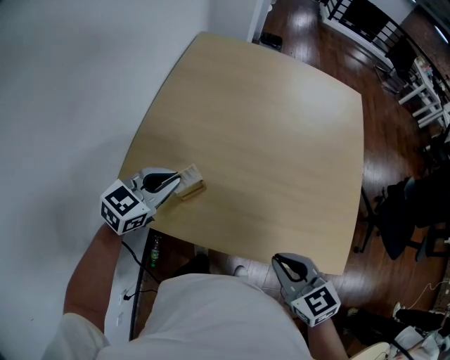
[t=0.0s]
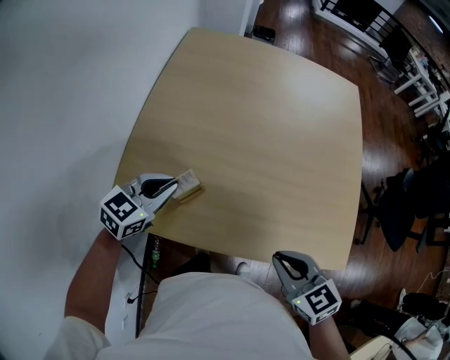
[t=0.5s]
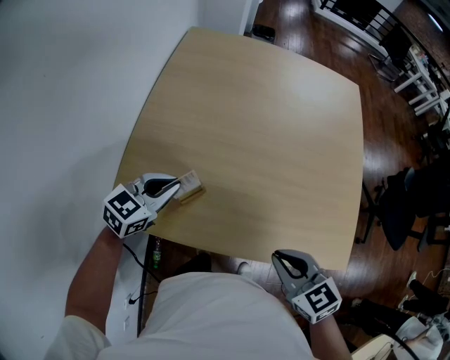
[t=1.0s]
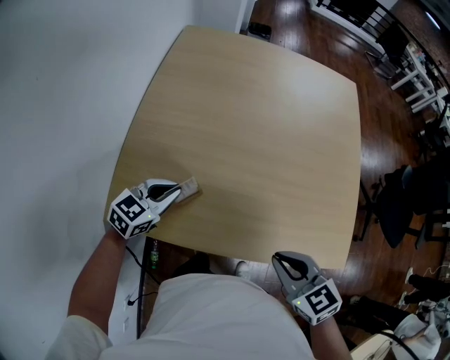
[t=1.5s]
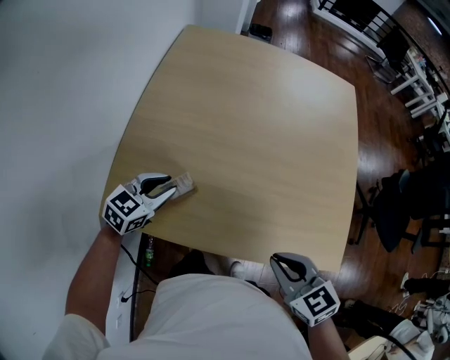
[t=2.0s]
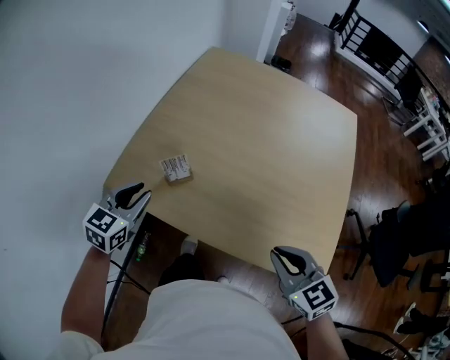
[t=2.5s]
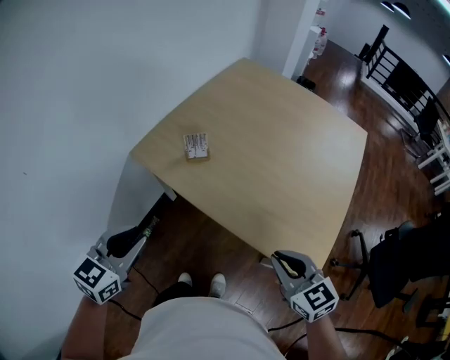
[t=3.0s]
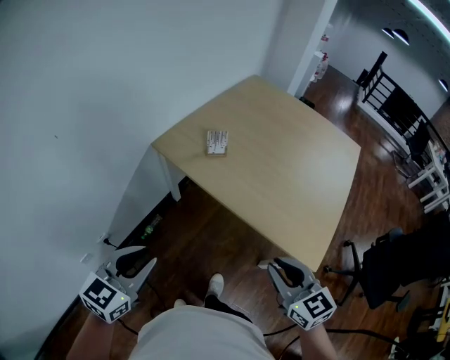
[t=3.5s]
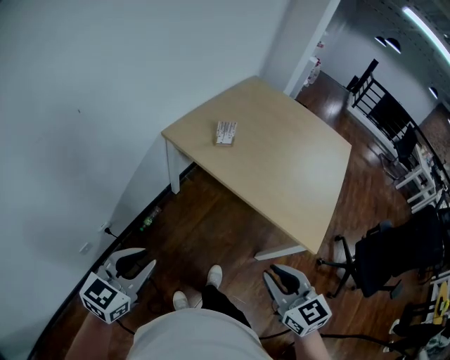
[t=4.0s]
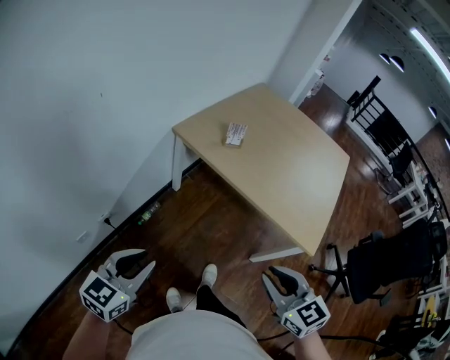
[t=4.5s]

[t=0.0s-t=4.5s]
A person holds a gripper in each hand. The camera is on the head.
t=0.0s to t=2.0s: The left gripper shifts approximately 10 cm downward, and opens.
t=2.0s to t=4.5s: Both grippers are carried approximately 60 cm. The left gripper changes its angle by approximately 40 degrees; the right gripper swivels approximately 30 degrees.

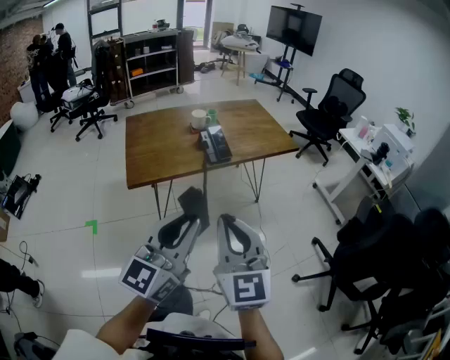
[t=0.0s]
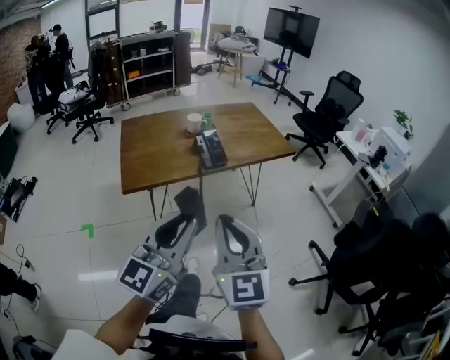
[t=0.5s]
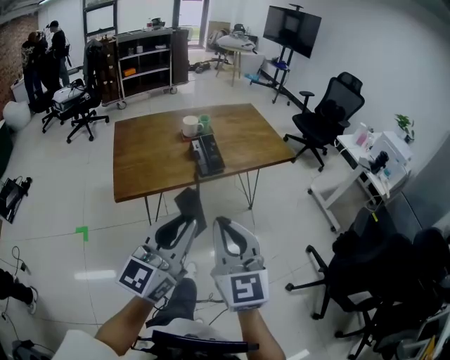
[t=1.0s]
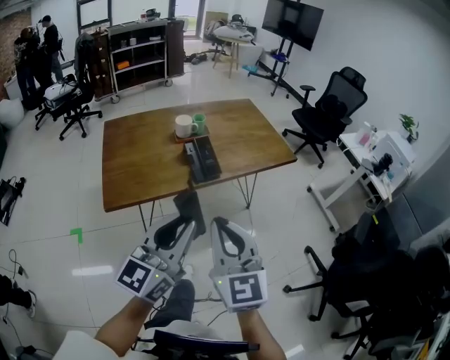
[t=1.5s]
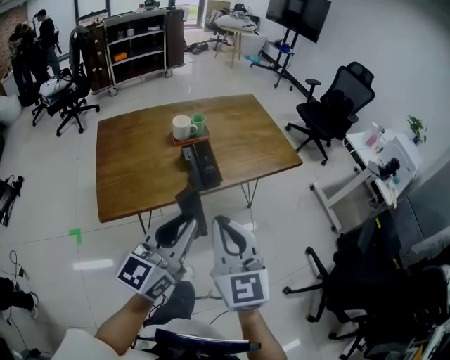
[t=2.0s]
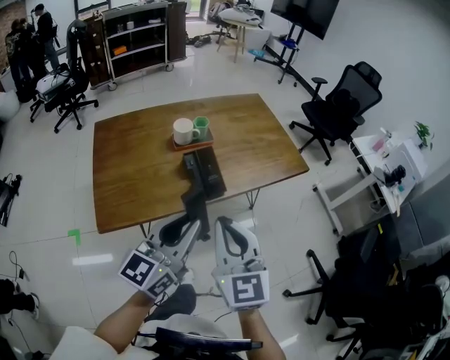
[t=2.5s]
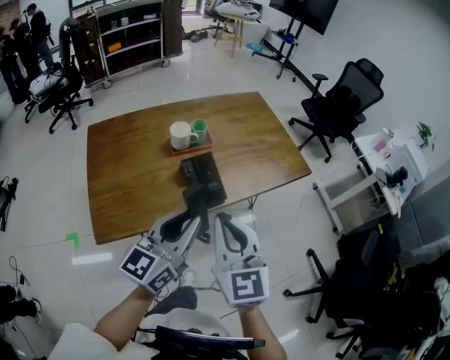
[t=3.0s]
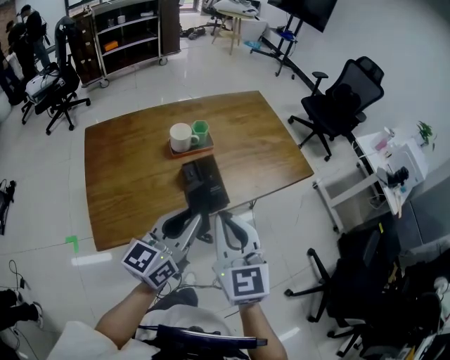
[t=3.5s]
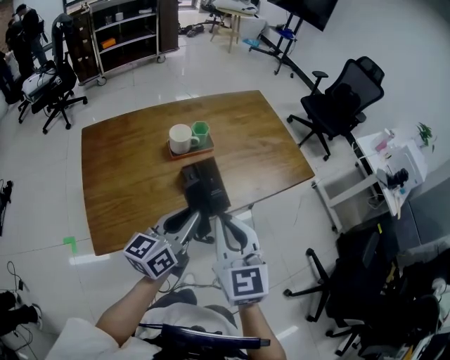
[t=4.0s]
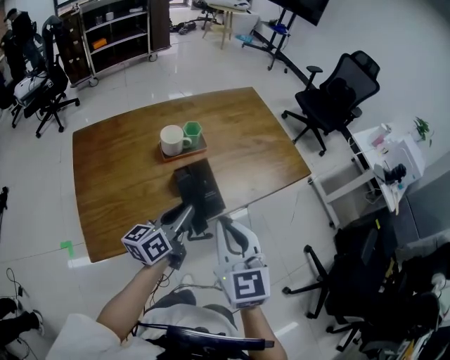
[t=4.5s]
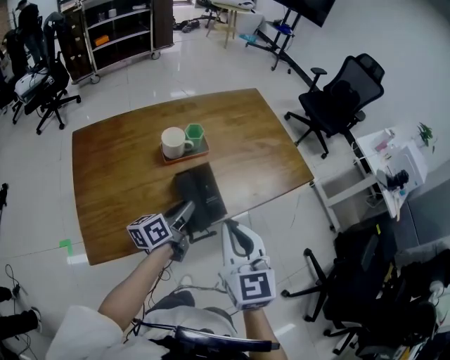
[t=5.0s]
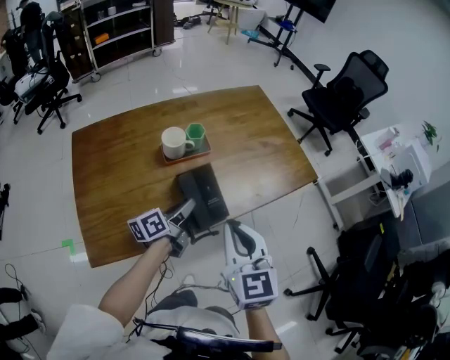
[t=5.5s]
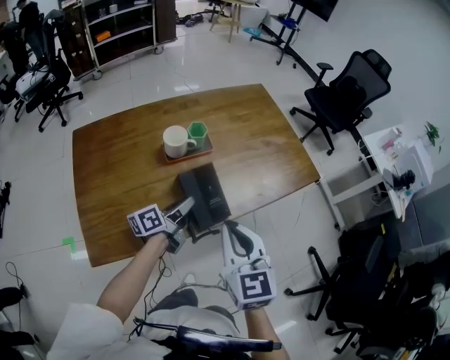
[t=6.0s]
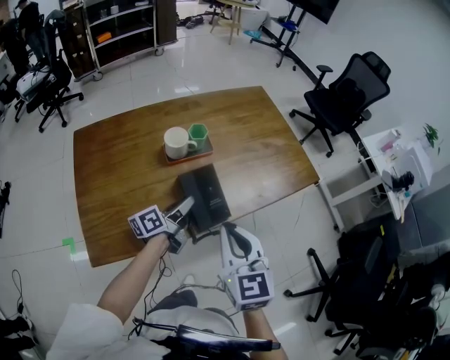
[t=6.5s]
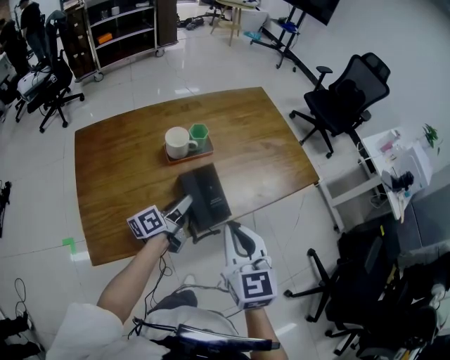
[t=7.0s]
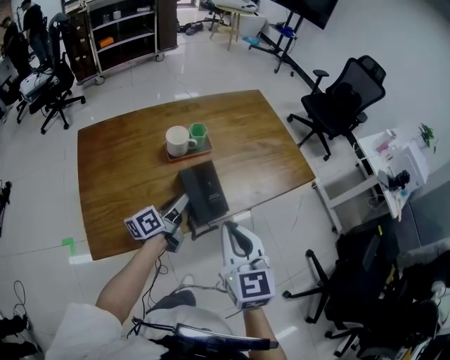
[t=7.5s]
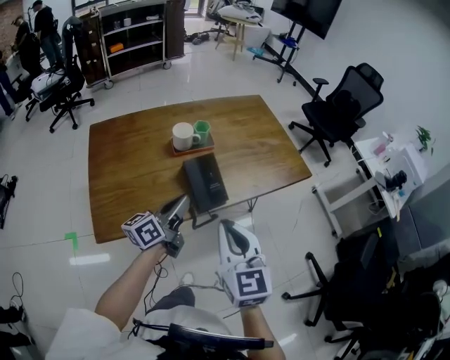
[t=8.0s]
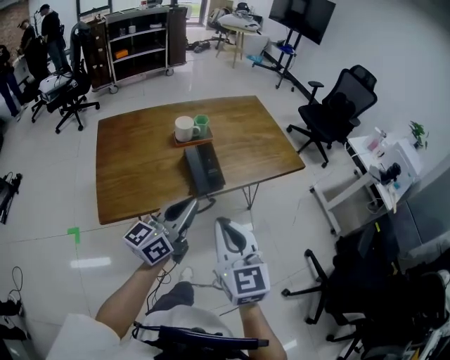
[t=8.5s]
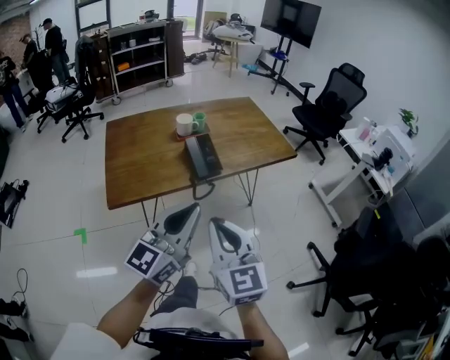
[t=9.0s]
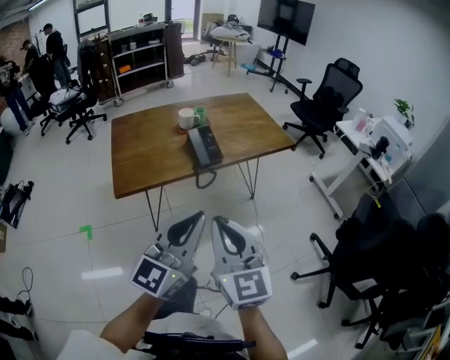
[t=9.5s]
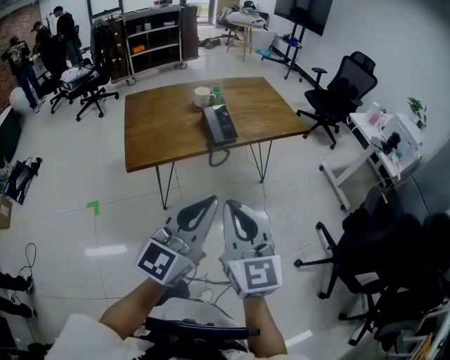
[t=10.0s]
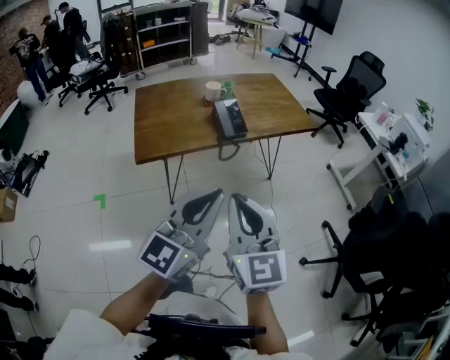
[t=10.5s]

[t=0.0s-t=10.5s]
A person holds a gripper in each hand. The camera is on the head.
t=0.0s to t=2.0s: Both grippers travel together forward, approximately 25 cm.
t=2.0s to t=4.0s: The right gripper is displaced forward by about 15 cm, while the left gripper travels forward and downward by approximately 20 cm.
t=4.0s to t=6.5s: The right gripper shifts by some 5 cm; the left gripper is displaced downward and forward by approximately 20 cm, and changes its angle by about 30 degrees.
t=6.5s to t=8.5s: The right gripper is displaced backward by about 20 cm. The left gripper is displaced backward and upward by roughly 30 cm, and changes its angle by some 40 degrees.
t=8.5s to t=10.5s: Both grippers move backward, roughly 25 cm. The left gripper turns by approximately 30 degrees.

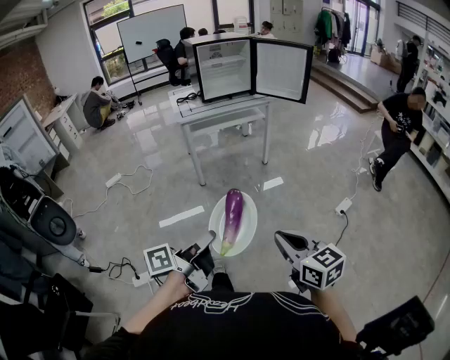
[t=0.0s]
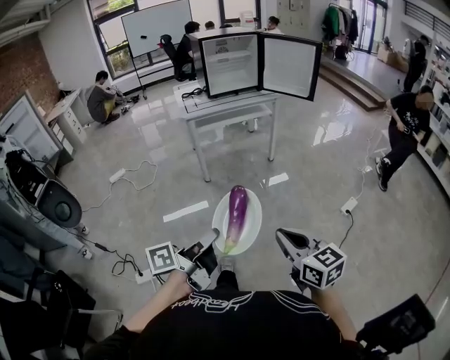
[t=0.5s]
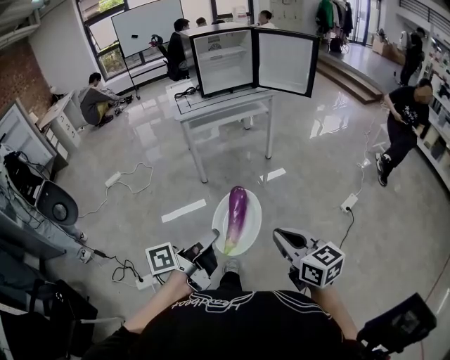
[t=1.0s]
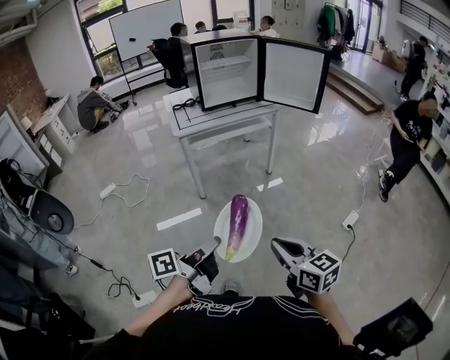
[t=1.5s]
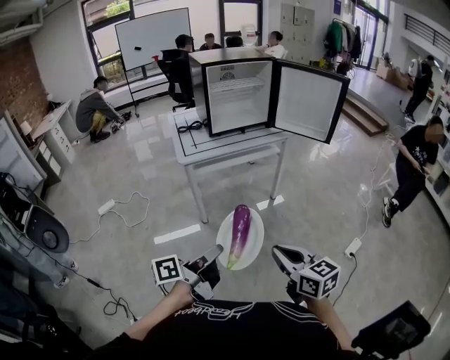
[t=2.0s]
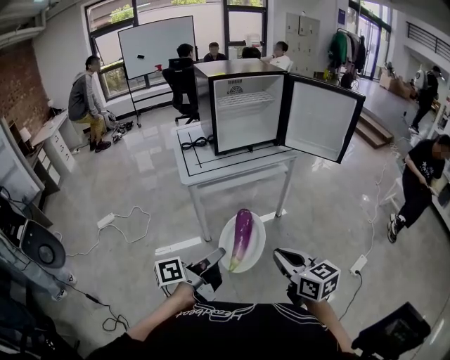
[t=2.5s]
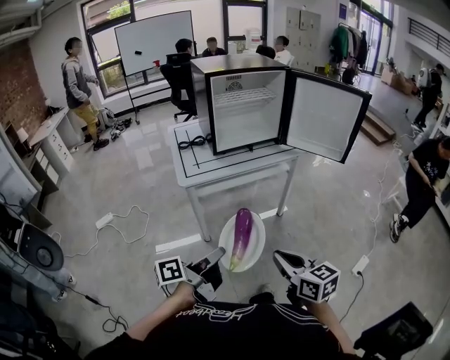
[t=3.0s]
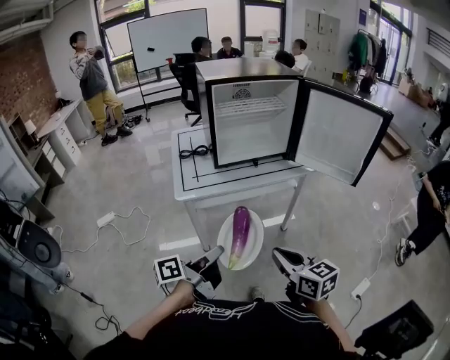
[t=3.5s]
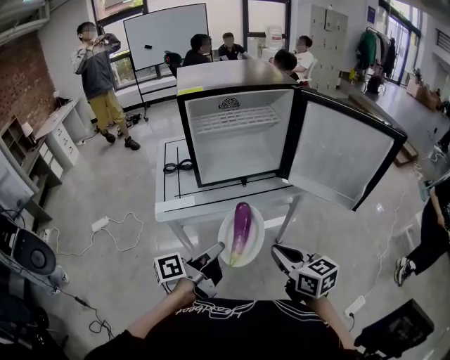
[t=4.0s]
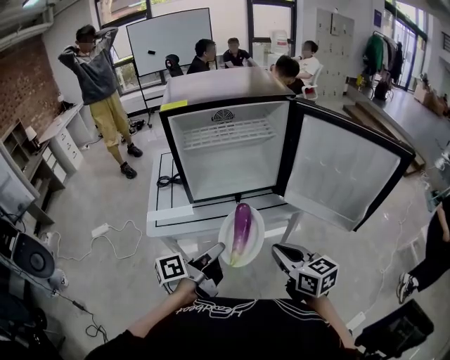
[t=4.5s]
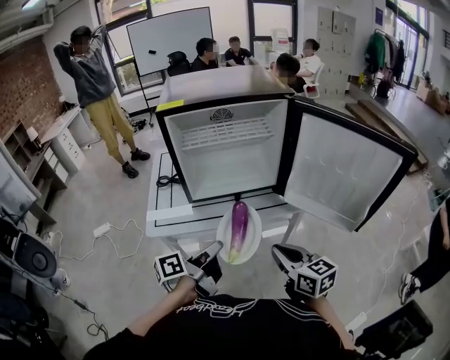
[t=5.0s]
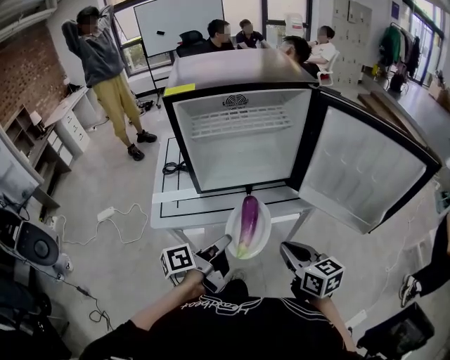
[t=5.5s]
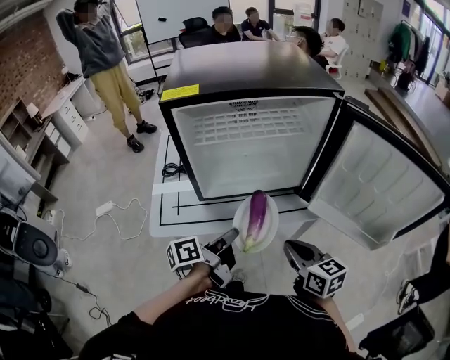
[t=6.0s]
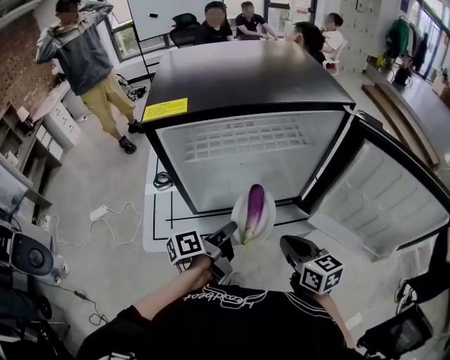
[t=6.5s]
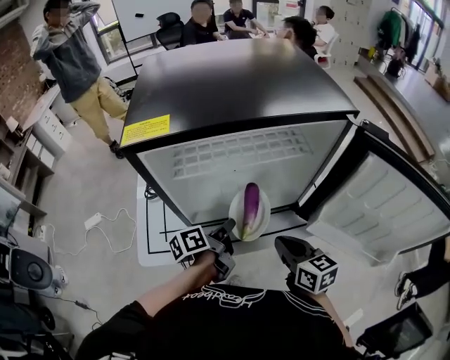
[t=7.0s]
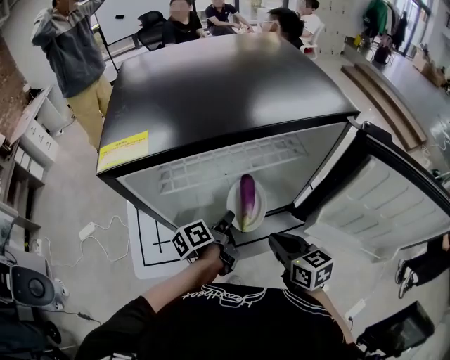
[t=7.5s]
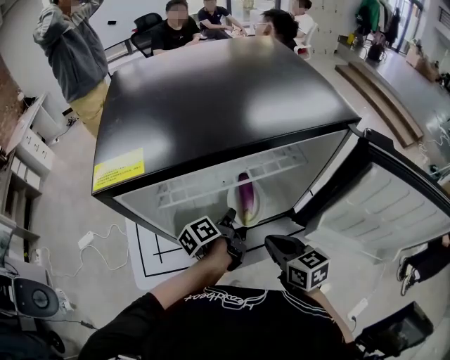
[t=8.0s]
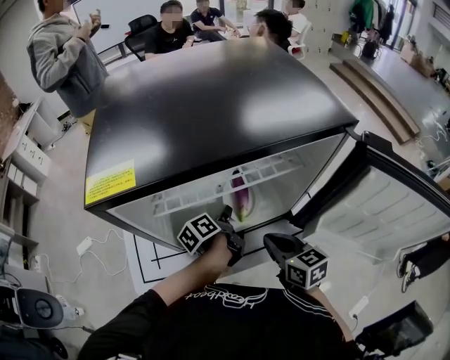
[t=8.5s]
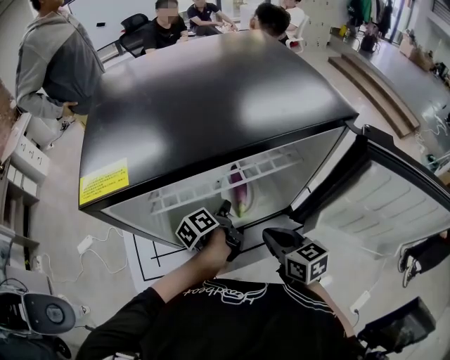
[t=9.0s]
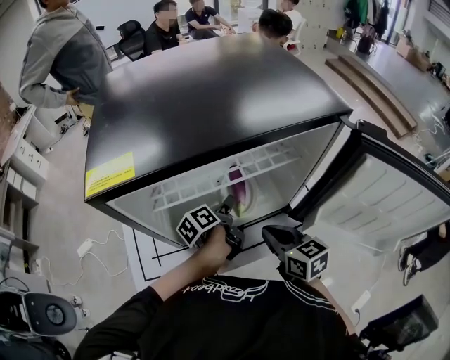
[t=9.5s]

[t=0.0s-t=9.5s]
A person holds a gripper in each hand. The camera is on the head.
t=0.0s to t=2.0s: Both grippers move forward, about 30 cm.
t=2.0s to t=4.0s: Both grippers travel together forward, roughly 40 cm.
t=4.0s to t=5.5s: The two grippers go some 10 cm forward.
t=5.5s to t=7.5s: Both grippers move forward, about 25 cm.
t=7.5s to t=9.5s: The left gripper moves forward, approximately 5 cm, and opens up.

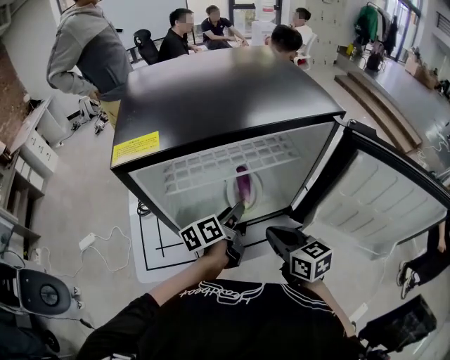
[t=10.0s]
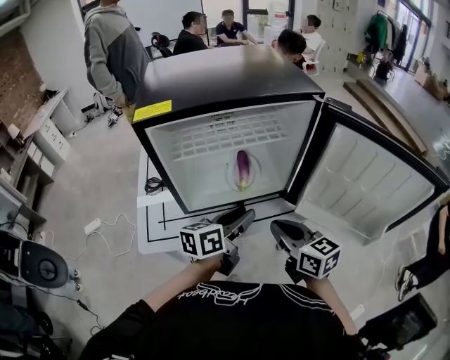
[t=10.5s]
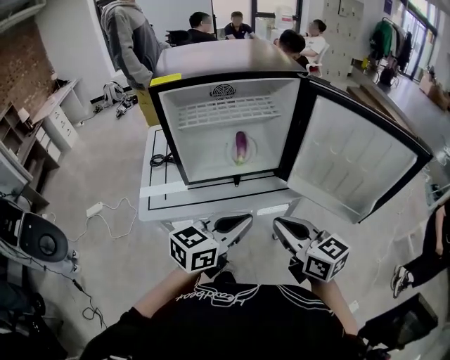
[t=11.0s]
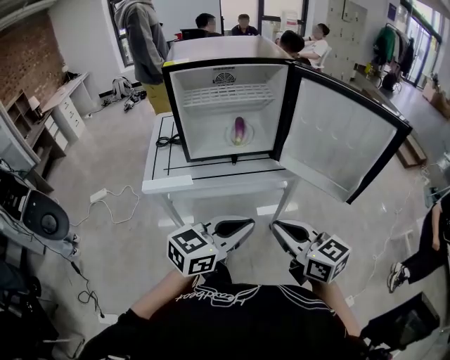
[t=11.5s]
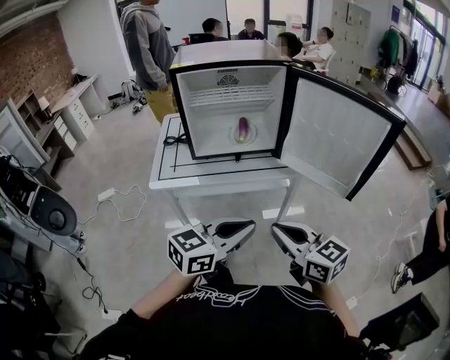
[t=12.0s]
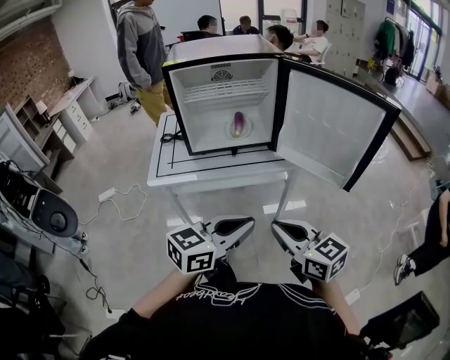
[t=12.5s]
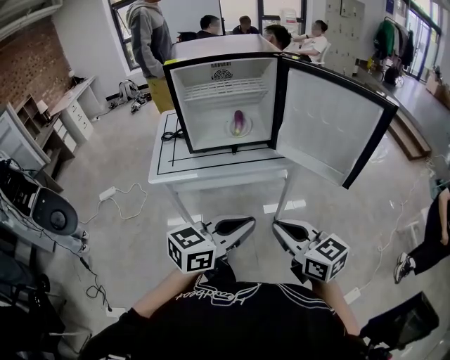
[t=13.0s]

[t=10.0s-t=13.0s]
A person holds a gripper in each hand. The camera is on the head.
t=10.0s to t=11.5s: The grippers both shift backward by about 35 cm. The left gripper rolls clockwise, seen from behind, by approximately 50 degrees, and closes up.
t=11.5s to t=13.0s: The grippers both shift backward by approximately 5 cm.
